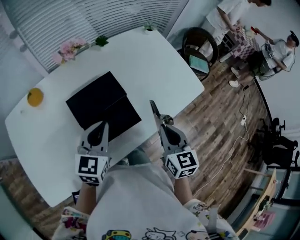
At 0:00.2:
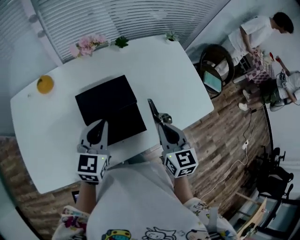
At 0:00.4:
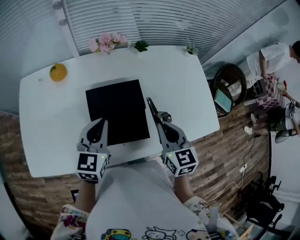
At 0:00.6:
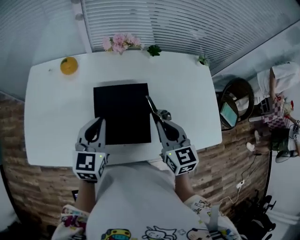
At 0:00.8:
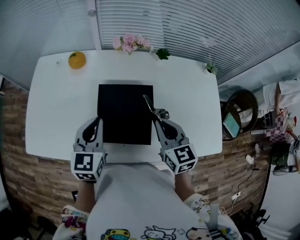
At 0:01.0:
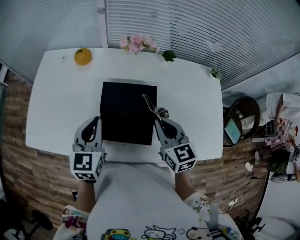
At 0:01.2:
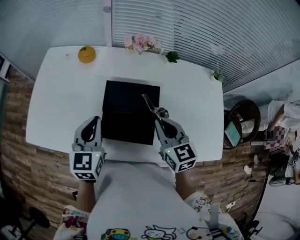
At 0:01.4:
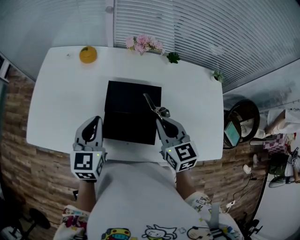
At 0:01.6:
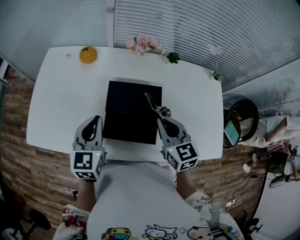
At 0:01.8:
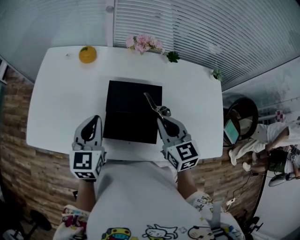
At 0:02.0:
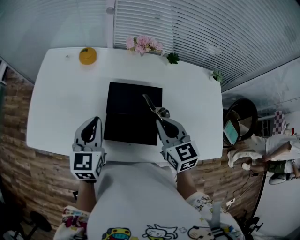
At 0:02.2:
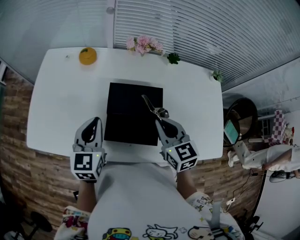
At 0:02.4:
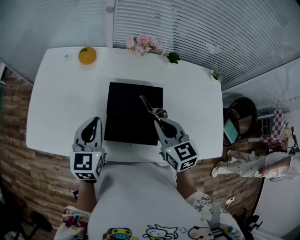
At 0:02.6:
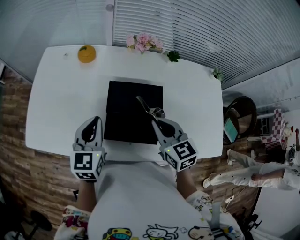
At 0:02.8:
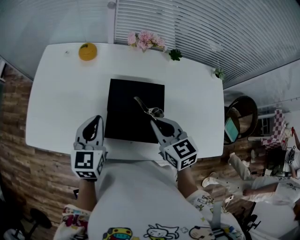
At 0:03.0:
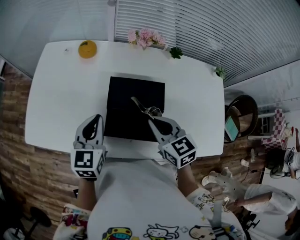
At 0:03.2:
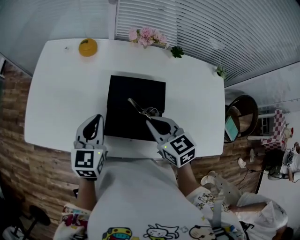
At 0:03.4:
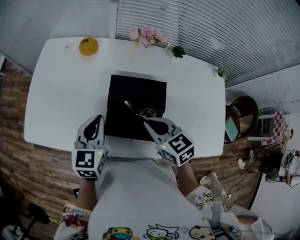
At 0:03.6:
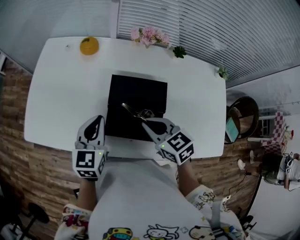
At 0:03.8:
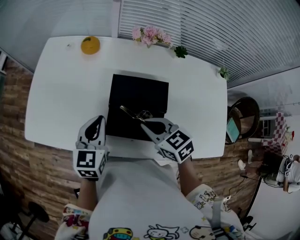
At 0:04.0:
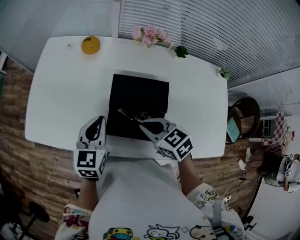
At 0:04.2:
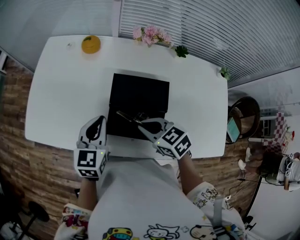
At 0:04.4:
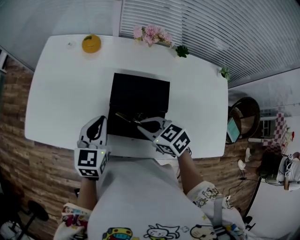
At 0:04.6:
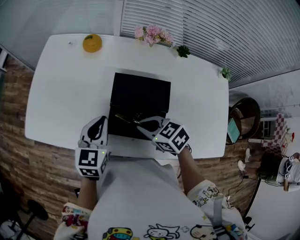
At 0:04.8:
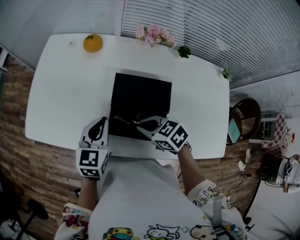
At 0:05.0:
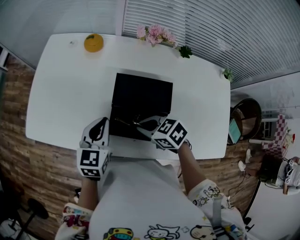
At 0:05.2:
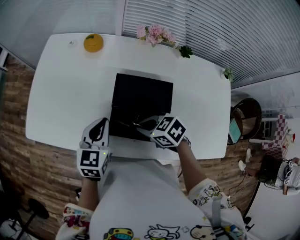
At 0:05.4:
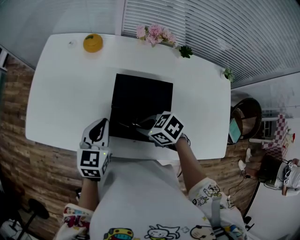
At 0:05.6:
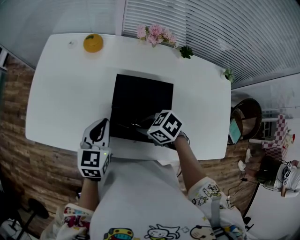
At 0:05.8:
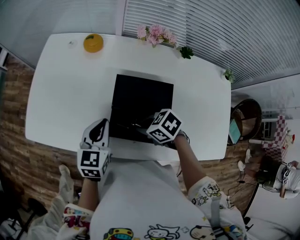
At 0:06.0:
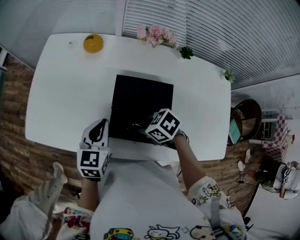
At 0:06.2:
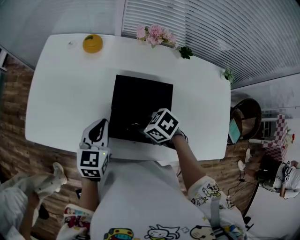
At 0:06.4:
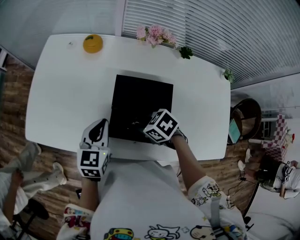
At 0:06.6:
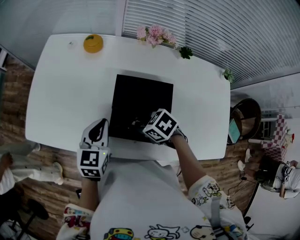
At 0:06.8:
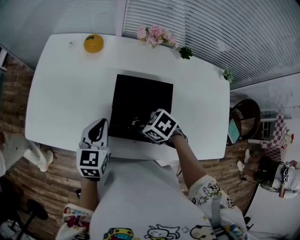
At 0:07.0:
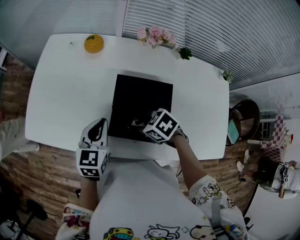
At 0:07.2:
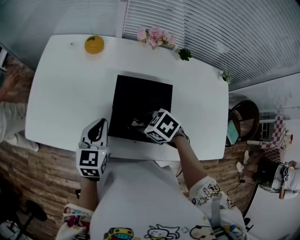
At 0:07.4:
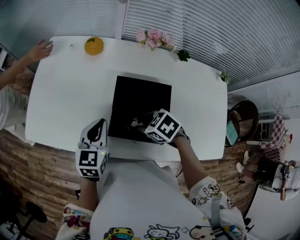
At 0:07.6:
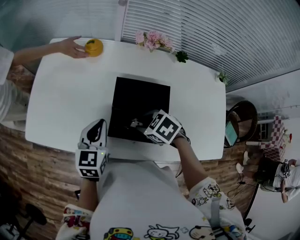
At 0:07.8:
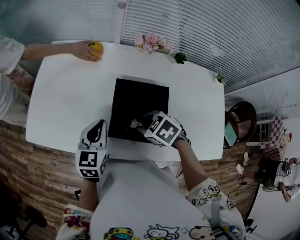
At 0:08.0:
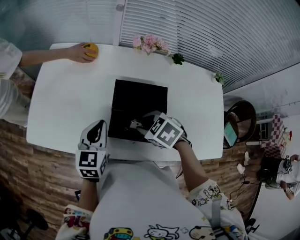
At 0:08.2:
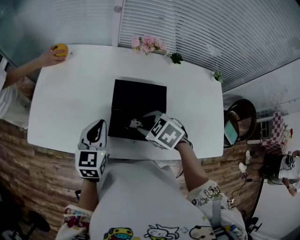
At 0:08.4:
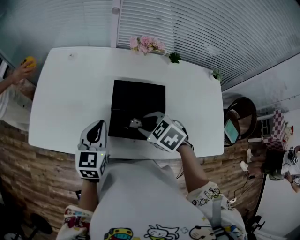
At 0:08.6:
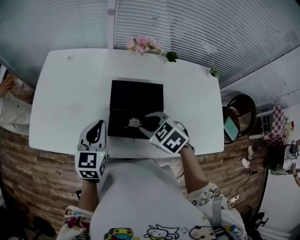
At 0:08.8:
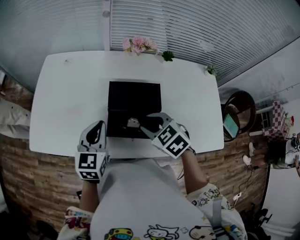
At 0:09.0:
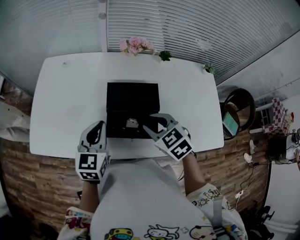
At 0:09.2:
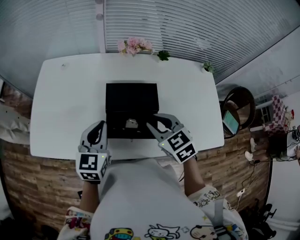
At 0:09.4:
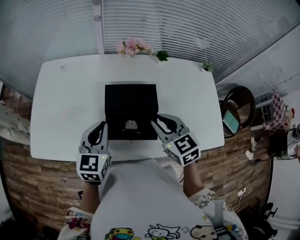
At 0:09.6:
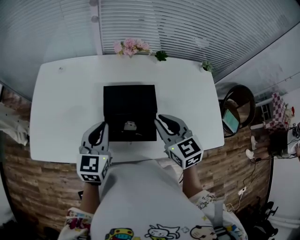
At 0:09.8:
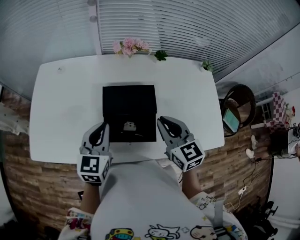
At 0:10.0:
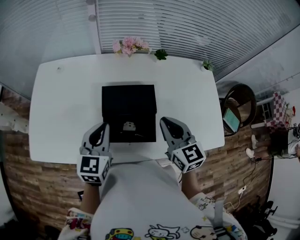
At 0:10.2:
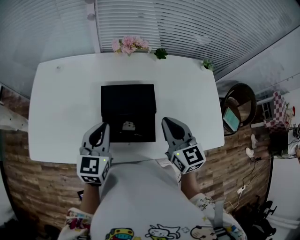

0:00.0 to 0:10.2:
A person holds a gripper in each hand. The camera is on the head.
0:00.0 to 0:01.4: The right gripper moves about 20 cm, and turns by roughly 50 degrees. Meanwhile the left gripper changes place by some 10 cm, and rotates some 50 degrees.
0:01.4 to 0:03.0: The right gripper changes place by approximately 5 cm.
0:03.0 to 0:04.4: The right gripper shifts about 10 cm to the left and downward, and rotates approximately 30 degrees.
0:04.4 to 0:05.8: The right gripper heads downward, covering approximately 5 cm, and turns by about 20 degrees.
0:05.8 to 0:07.2: The right gripper opens its fingers.
0:07.2 to 0:08.8: The right gripper moves upward, about 10 cm, and changes its angle by about 30 degrees.
0:08.8 to 0:10.2: The right gripper is displaced to the right and upward by roughly 10 cm, angles its fingers upward, by about 30 degrees, and closes its fingers.

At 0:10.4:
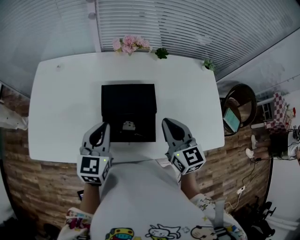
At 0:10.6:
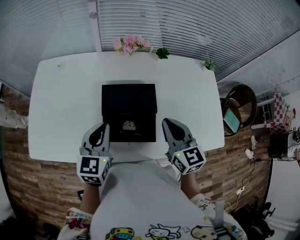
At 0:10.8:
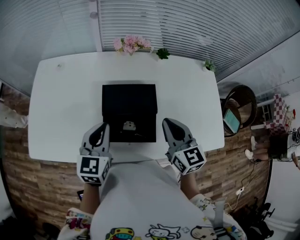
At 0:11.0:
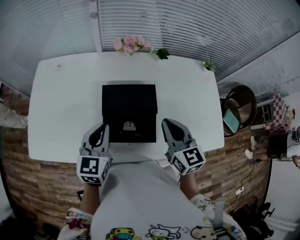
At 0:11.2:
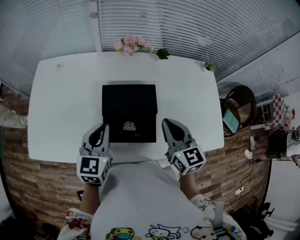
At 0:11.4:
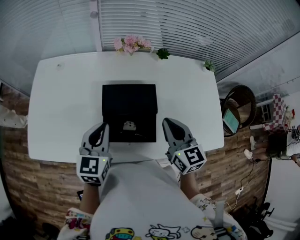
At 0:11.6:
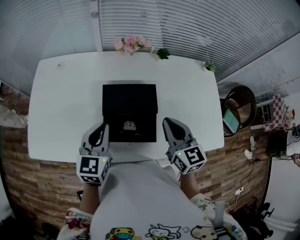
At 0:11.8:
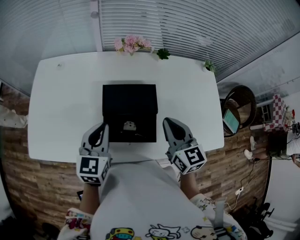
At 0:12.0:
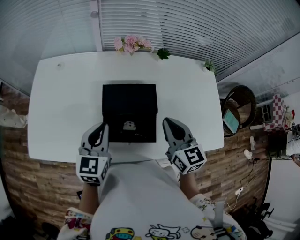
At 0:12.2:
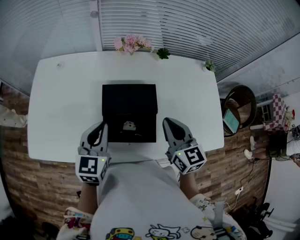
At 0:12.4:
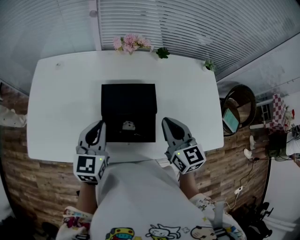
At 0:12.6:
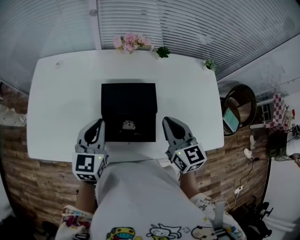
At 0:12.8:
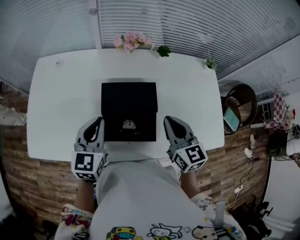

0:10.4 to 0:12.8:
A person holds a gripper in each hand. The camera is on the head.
0:10.4 to 0:11.6: The two grippers keep their place.
0:11.6 to 0:12.8: The grippers move only a little.

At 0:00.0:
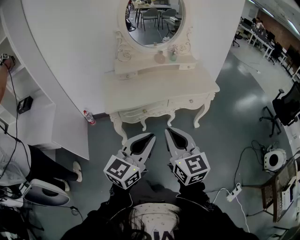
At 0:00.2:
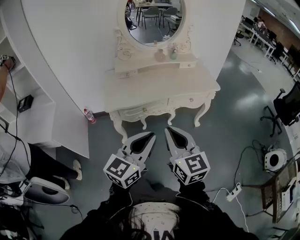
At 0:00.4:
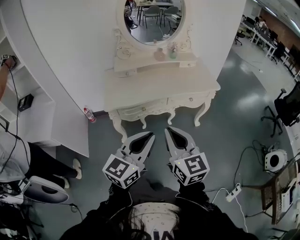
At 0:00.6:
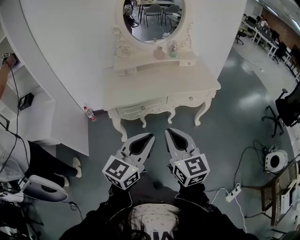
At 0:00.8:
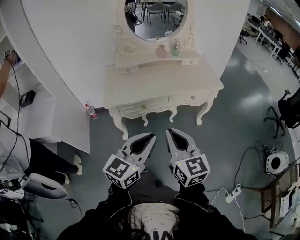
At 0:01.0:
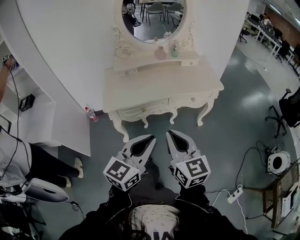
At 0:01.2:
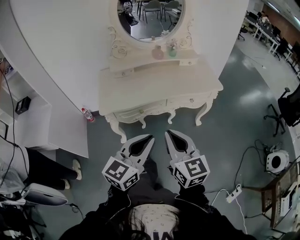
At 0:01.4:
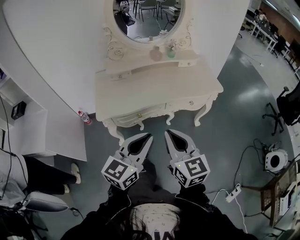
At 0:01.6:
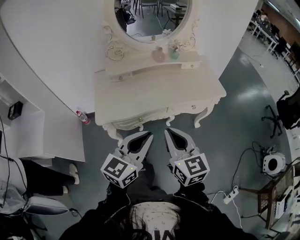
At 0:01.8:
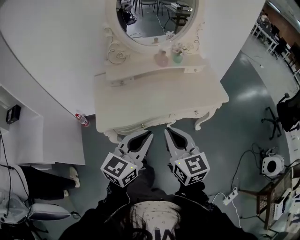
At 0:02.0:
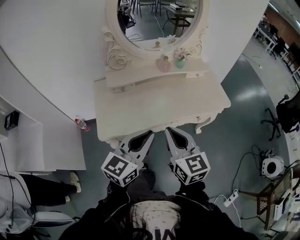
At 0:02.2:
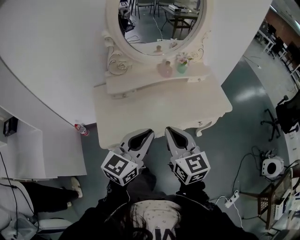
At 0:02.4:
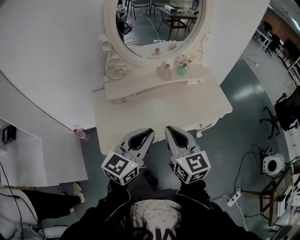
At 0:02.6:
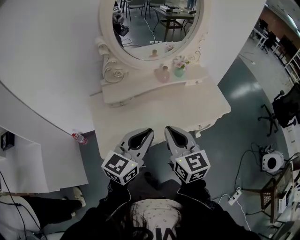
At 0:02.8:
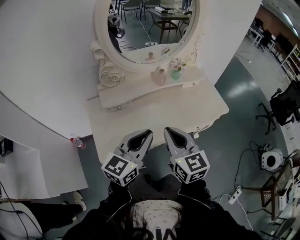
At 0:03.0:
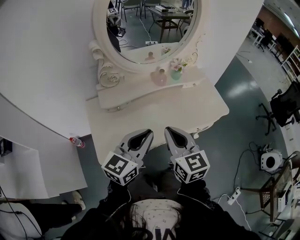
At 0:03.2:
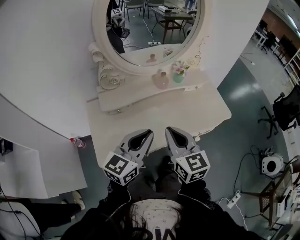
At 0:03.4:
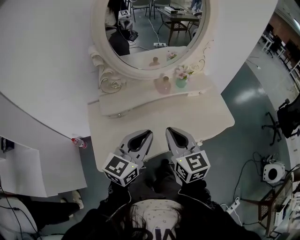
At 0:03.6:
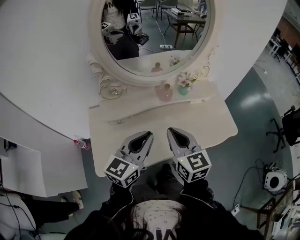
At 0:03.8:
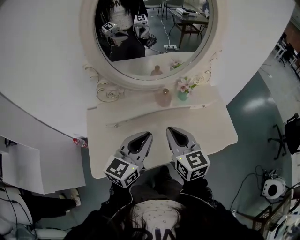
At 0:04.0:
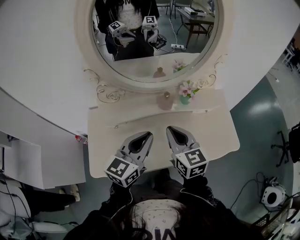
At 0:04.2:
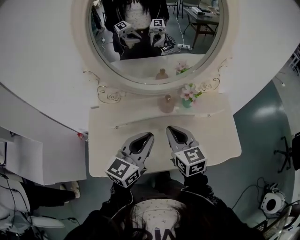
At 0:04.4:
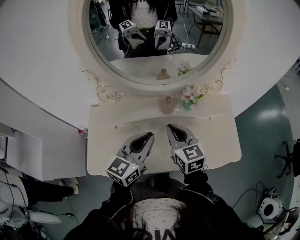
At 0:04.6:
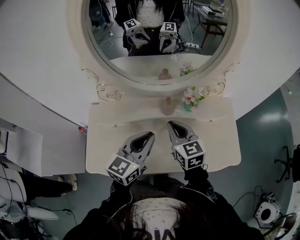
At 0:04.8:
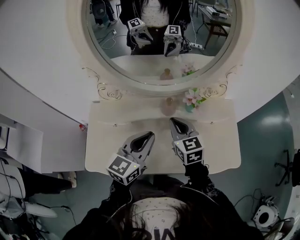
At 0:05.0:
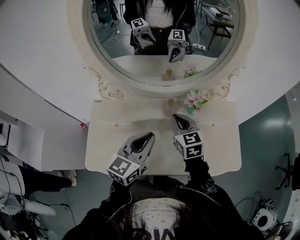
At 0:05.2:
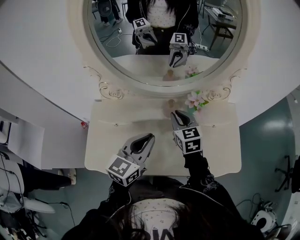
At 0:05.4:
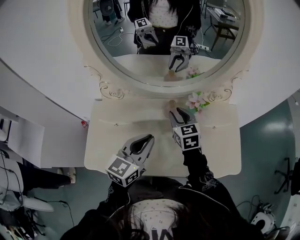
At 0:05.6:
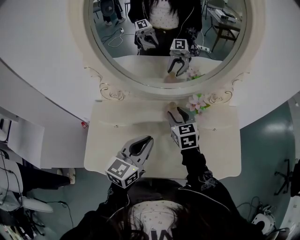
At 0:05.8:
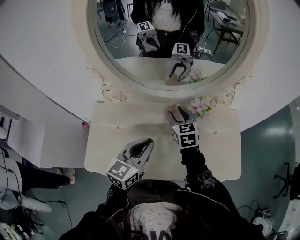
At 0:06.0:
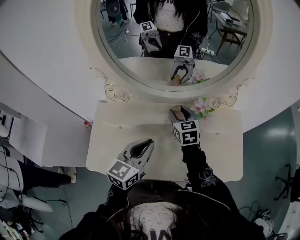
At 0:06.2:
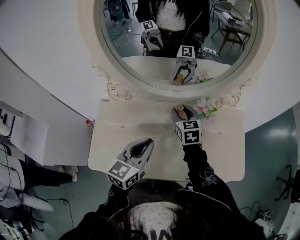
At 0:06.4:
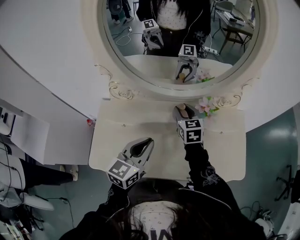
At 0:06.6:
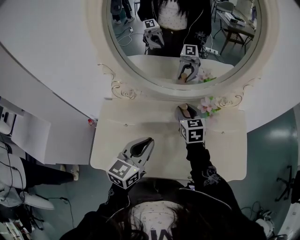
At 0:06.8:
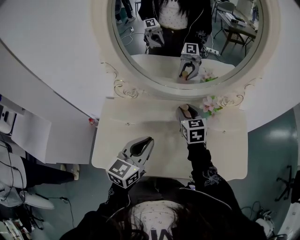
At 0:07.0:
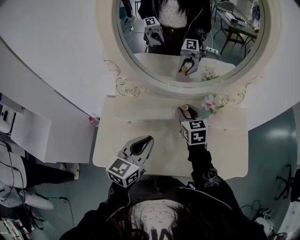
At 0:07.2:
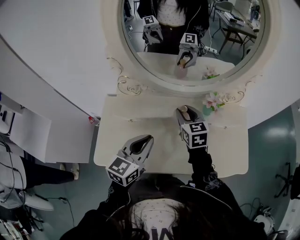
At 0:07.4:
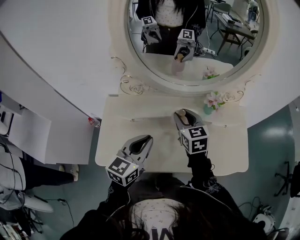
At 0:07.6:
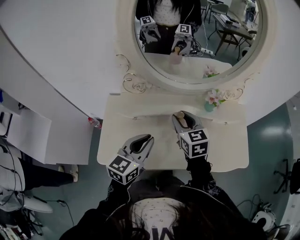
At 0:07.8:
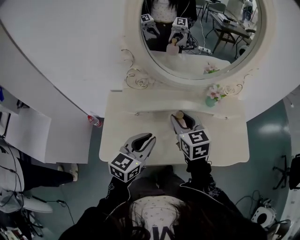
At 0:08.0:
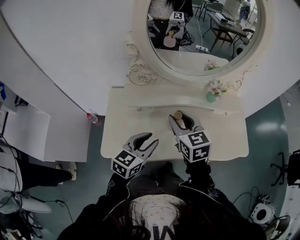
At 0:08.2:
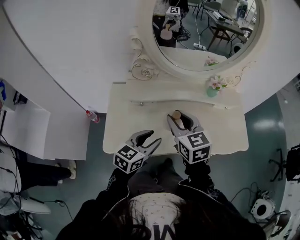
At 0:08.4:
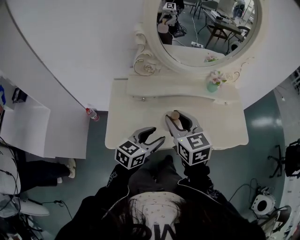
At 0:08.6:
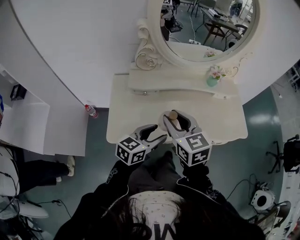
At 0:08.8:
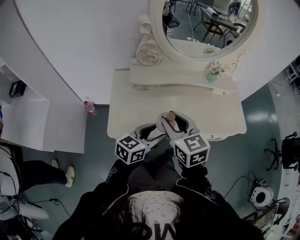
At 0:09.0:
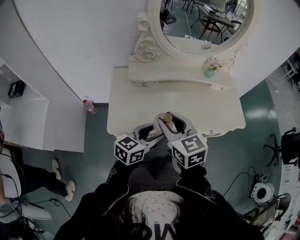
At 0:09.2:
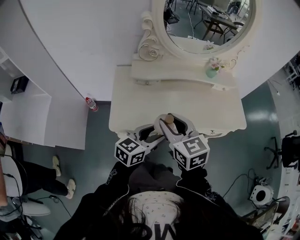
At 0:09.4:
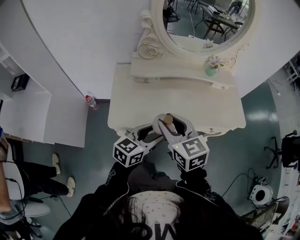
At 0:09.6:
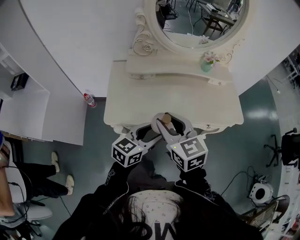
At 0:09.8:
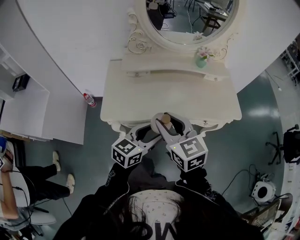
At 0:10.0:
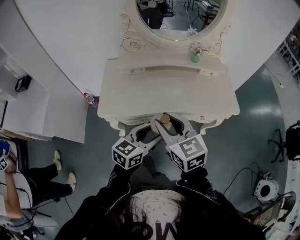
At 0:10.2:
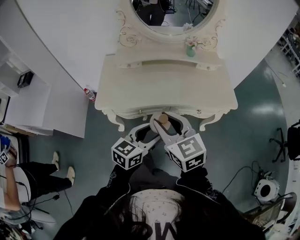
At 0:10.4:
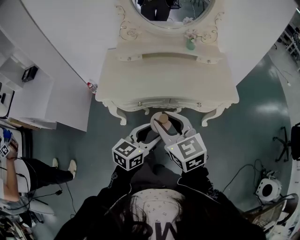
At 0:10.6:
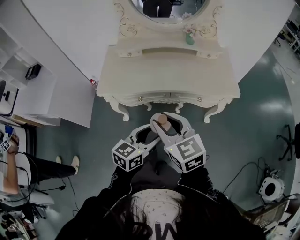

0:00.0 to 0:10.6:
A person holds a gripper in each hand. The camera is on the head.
0:00.0 to 0:01.6: The grippers both shift forward by roughly 15 cm.
0:01.6 to 0:03.0: The grippers both shift forward and to the left by about 20 cm.
0:03.0 to 0:04.6: Both grippers travel together forward, approximately 20 cm. The right gripper changes its angle by approximately 20 degrees. The left gripper swivels about 20 degrees.
0:04.6 to 0:06.0: The right gripper shifts roughly 15 cm forward and downward, and opens its fingers.
0:06.0 to 0:07.6: The left gripper is displaced to the left and backward by about 10 cm, while the right gripper goes roughly 15 cm backward, upward and to the left.
0:07.6 to 0:09.0: The left gripper travels backward by some 15 cm, changes its angle by about 20 degrees, and opens up; the right gripper moves backward and to the left, approximately 30 cm.
0:09.0 to 0:10.6: Both grippers move backward and to the right, some 25 cm.
